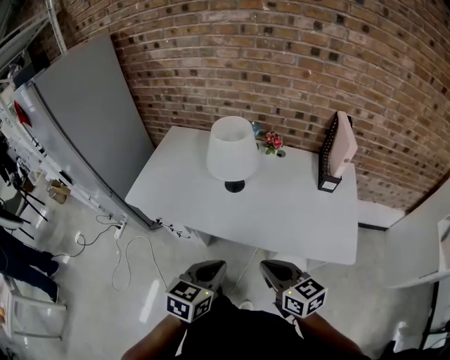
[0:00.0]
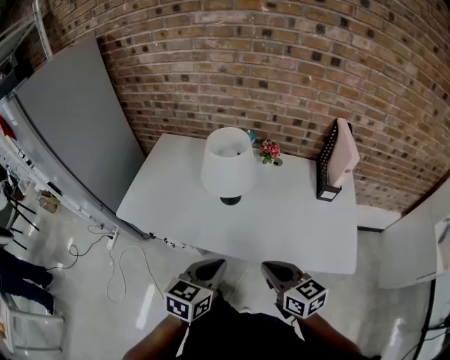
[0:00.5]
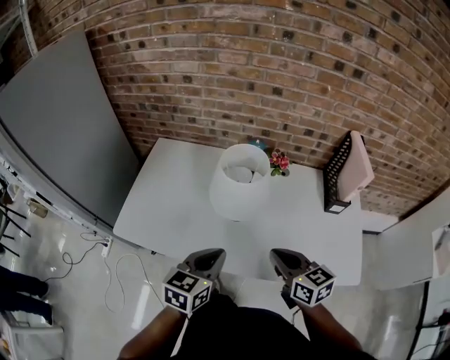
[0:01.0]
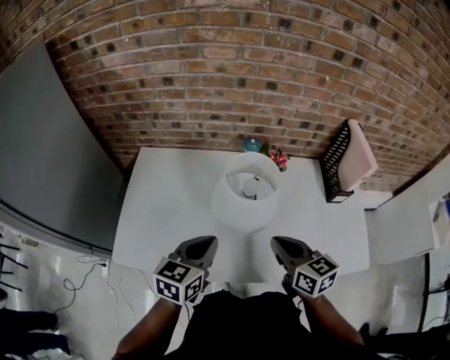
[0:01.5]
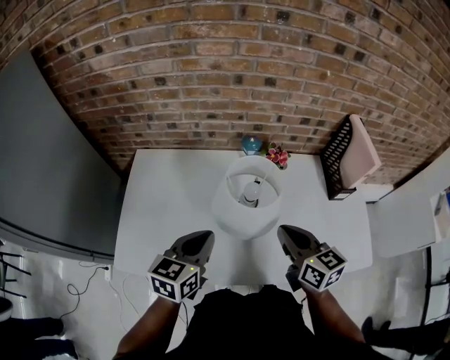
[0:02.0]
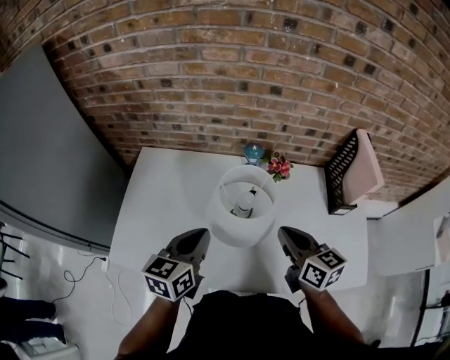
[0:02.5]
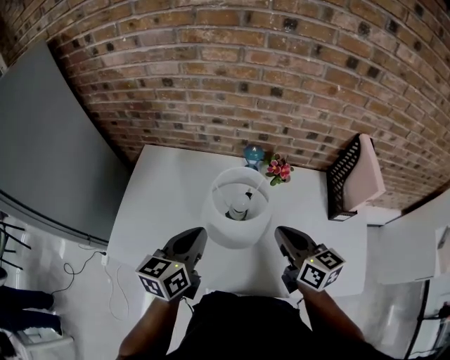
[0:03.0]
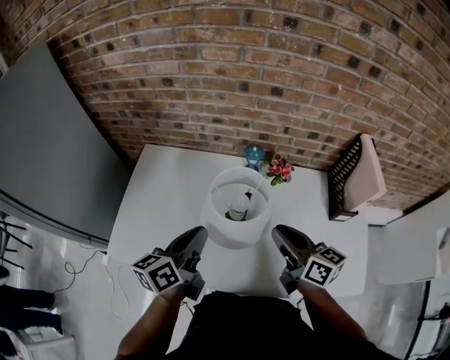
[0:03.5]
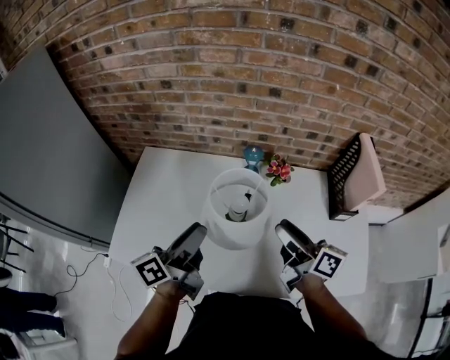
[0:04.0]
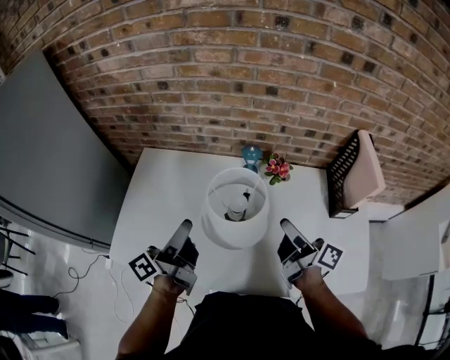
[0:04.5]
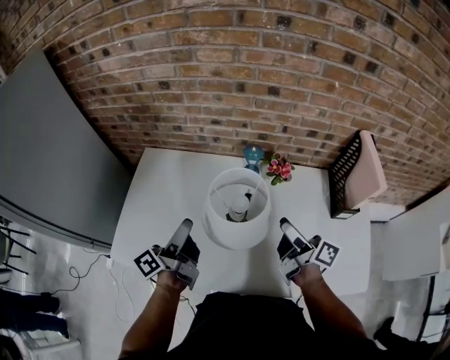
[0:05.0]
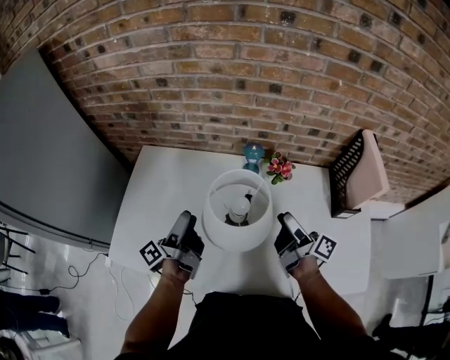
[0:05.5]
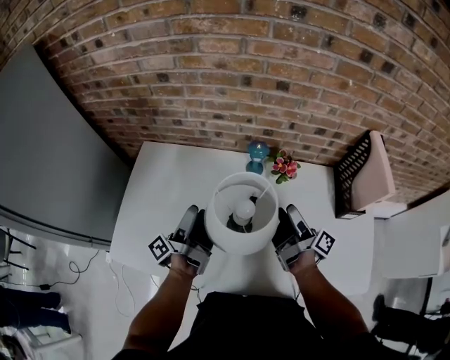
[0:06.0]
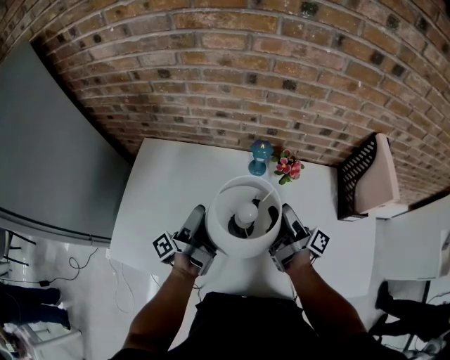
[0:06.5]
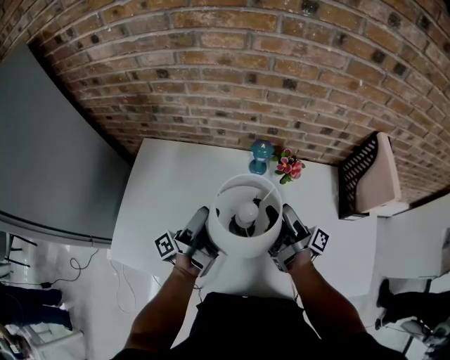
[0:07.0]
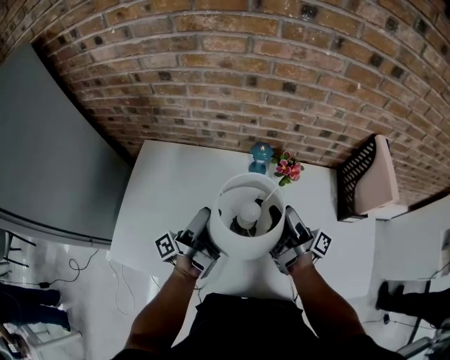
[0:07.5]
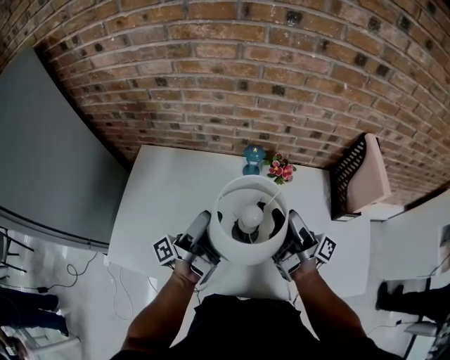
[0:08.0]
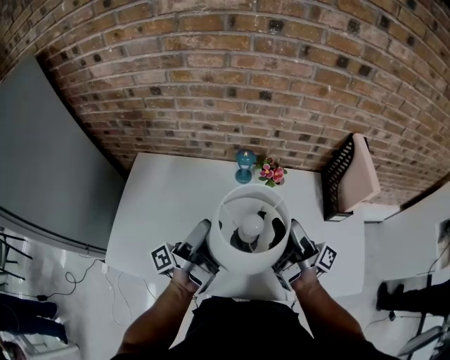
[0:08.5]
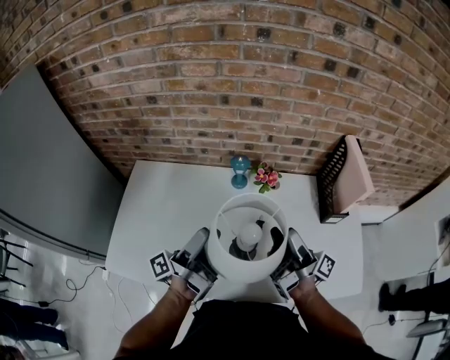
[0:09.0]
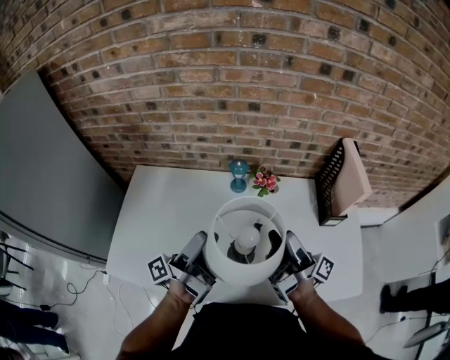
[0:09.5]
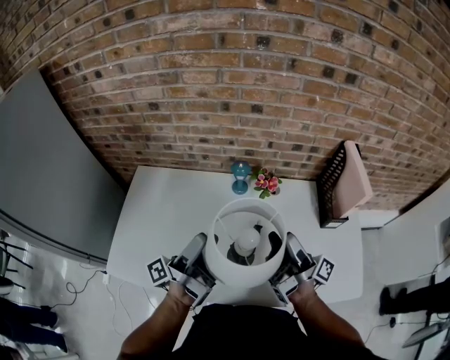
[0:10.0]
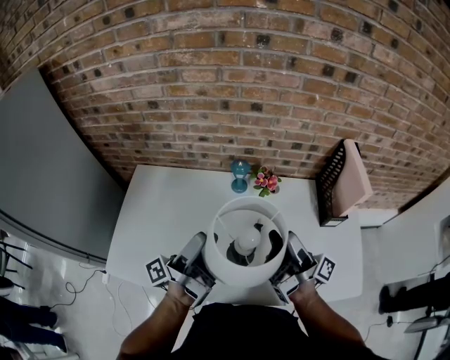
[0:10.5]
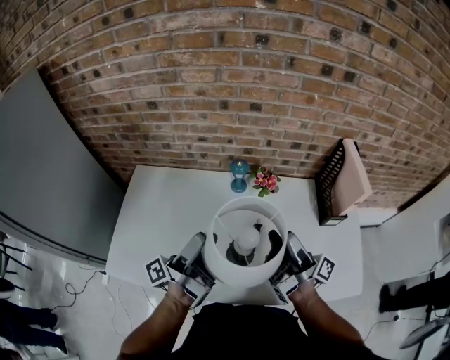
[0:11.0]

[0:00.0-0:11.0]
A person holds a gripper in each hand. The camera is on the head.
0:00.0 to 0:02.0: The left gripper moves forward and to the left, roughly 35 cm. Meanwhile the right gripper moves forward, roughly 30 cm, and rotates roughly 20 degrees.
0:02.0 to 0:03.5: The left gripper turns by about 30 degrees. Meanwhile the right gripper changes place by about 5 cm.
0:03.5 to 0:05.5: The grippers both shift downward and forward by about 10 cm. The right gripper swivels roughly 40 degrees, and opens up. Meanwhile the left gripper twists about 40 degrees counterclockwise, seen from behind, and opens its fingers.
0:05.5 to 0:07.5: The right gripper turns by about 20 degrees; the left gripper shifts some 5 cm to the right.
0:07.5 to 0:09.0: The two grippers go some 10 cm backward, upward and to the right.
0:09.0 to 0:11.0: The grippers move only a little.

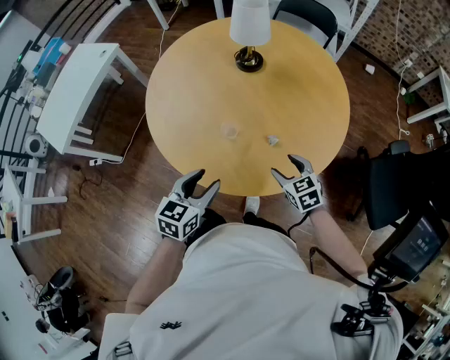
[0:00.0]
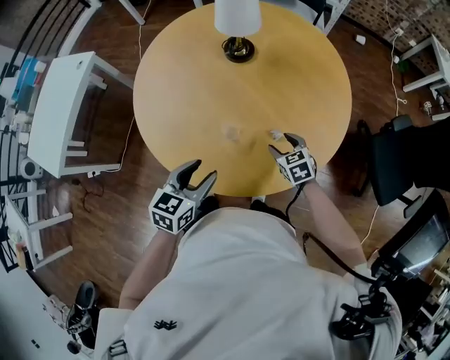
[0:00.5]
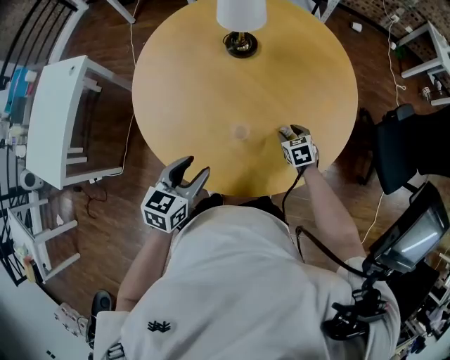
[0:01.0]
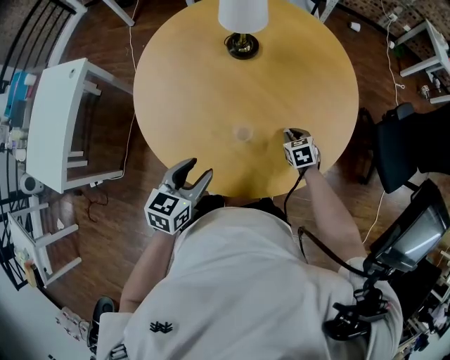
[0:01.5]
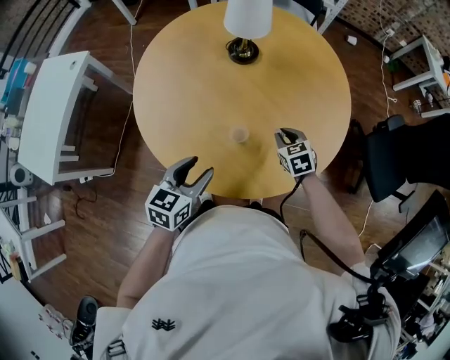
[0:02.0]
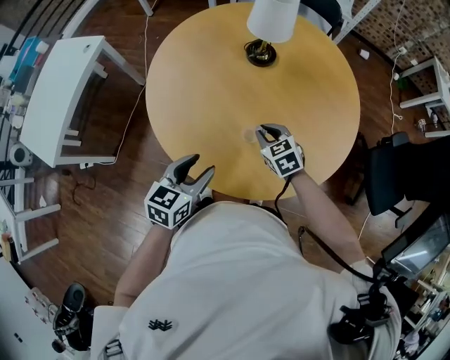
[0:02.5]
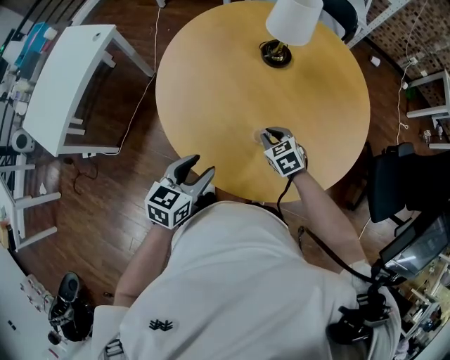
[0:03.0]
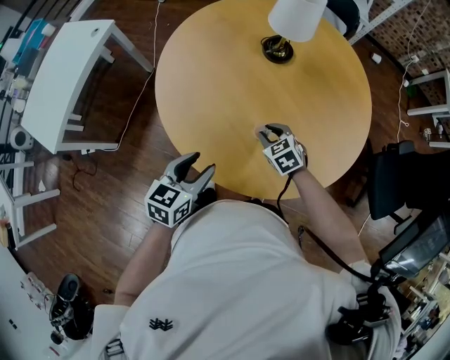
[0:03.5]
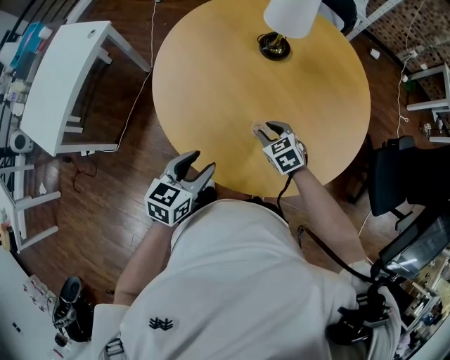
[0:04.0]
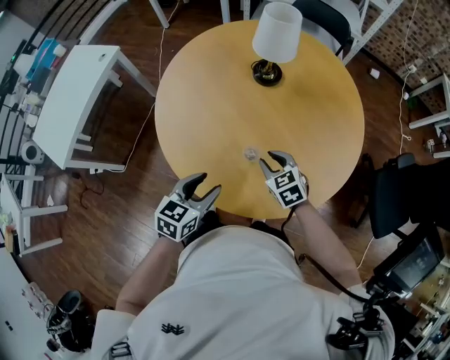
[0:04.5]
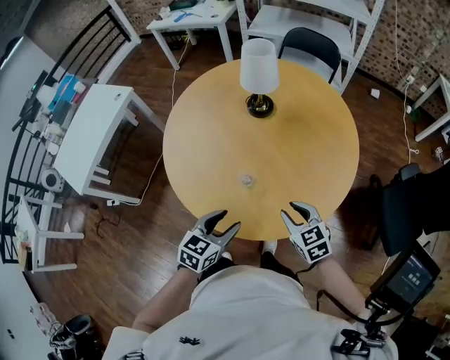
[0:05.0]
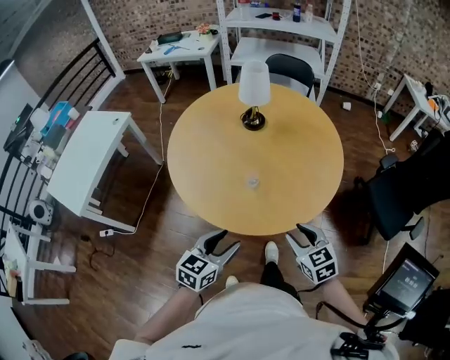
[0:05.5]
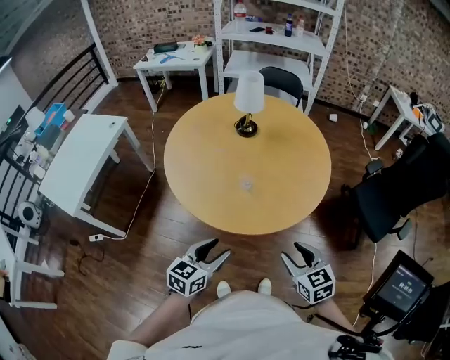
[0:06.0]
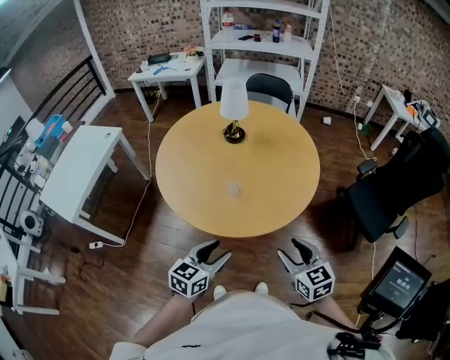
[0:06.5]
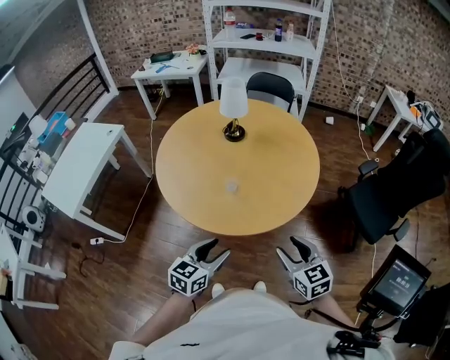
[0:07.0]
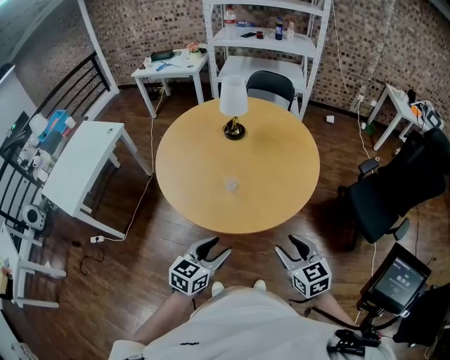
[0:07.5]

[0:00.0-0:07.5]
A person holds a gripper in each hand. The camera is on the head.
0:00.0 to 0:02.0: The right gripper shifts some 15 cm forward and to the left, travels downward and back again, roughly 15 cm each way, and closes, while the left gripper is displaced to the left and forward by roughly 15 cm.
0:02.0 to 0:04.0: The left gripper goes some 5 cm to the left; the right gripper is displaced to the left by approximately 15 cm.
0:04.0 to 0:05.5: The left gripper goes about 20 cm backward and to the right. Meanwhile the right gripper is displaced backward, upward and to the right by about 35 cm, and changes its angle by approximately 20 degrees.
0:05.5 to 0:07.5: The left gripper moves to the right and backward, about 10 cm. Meanwhile the right gripper travels backward, upward and to the right by roughly 10 cm.

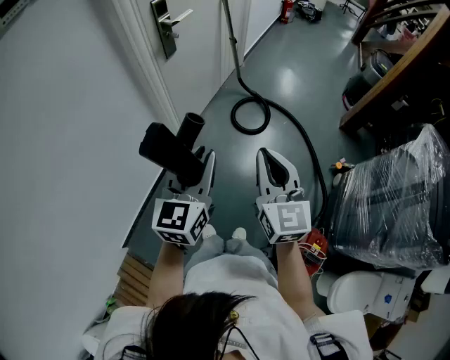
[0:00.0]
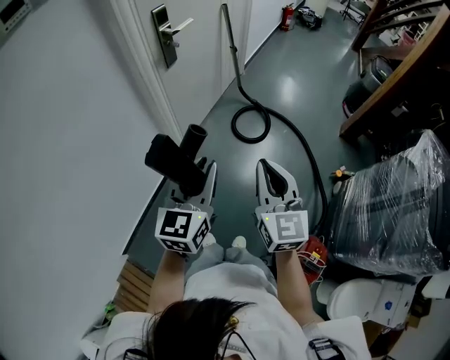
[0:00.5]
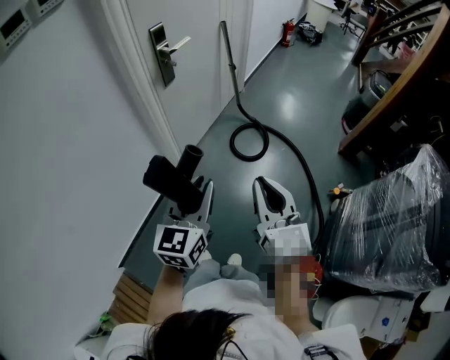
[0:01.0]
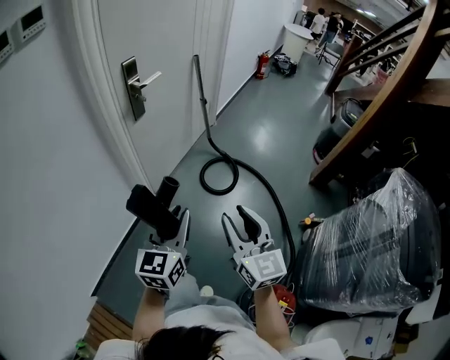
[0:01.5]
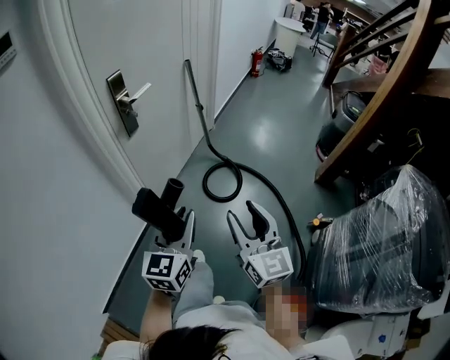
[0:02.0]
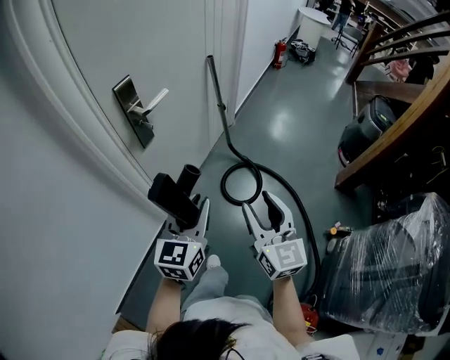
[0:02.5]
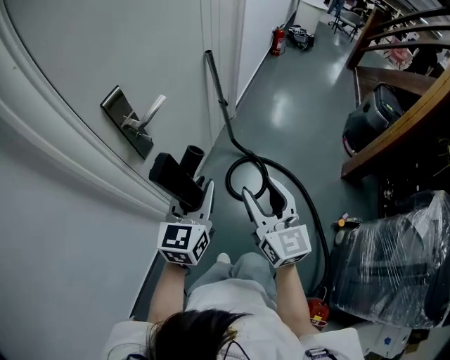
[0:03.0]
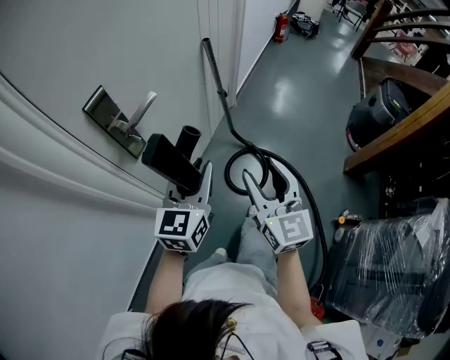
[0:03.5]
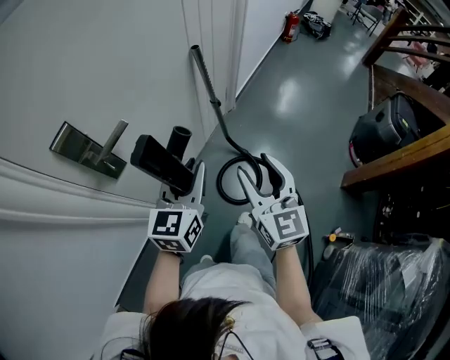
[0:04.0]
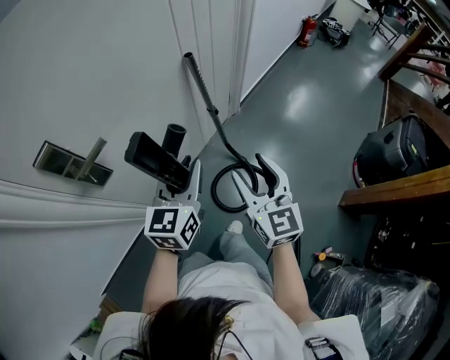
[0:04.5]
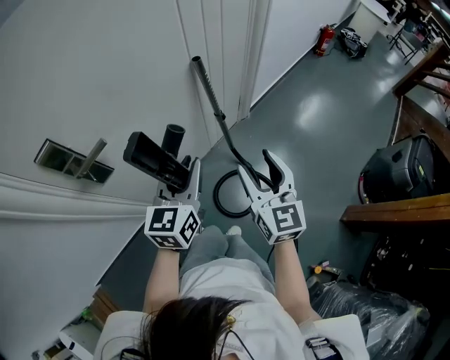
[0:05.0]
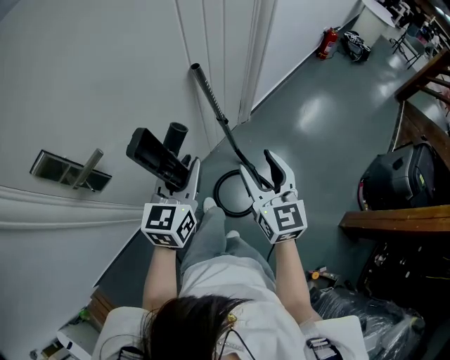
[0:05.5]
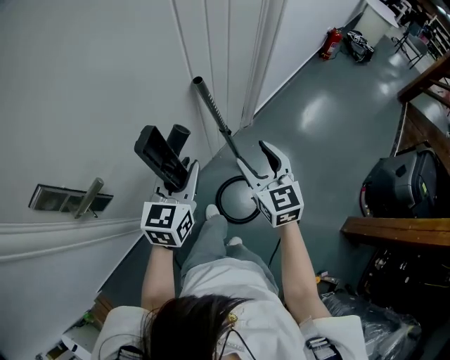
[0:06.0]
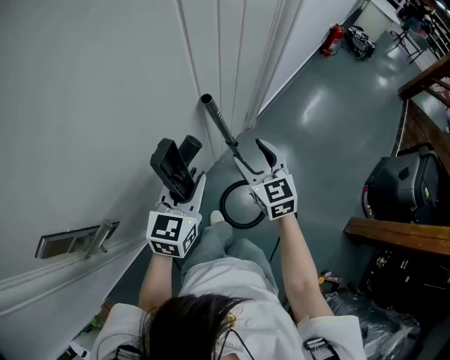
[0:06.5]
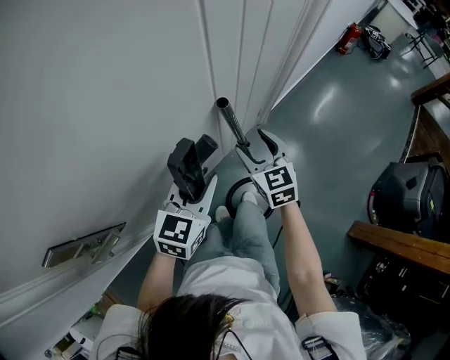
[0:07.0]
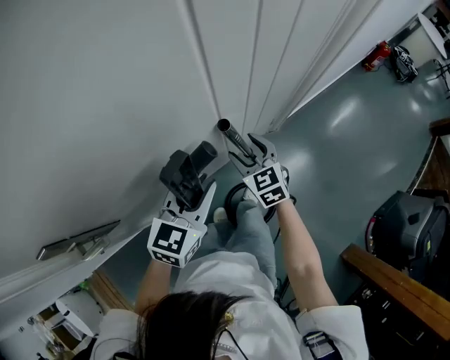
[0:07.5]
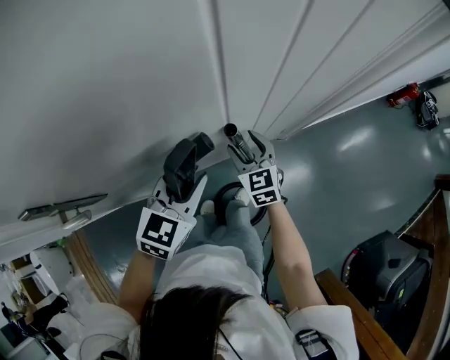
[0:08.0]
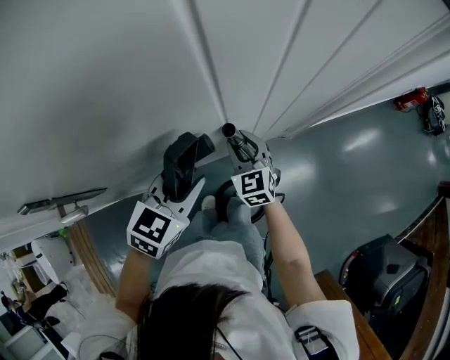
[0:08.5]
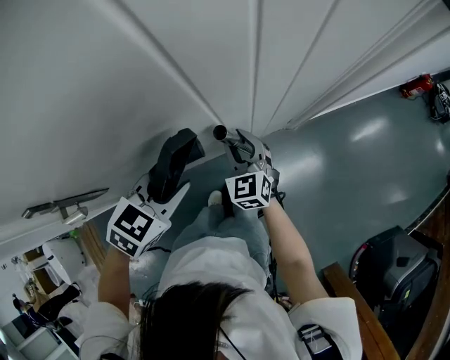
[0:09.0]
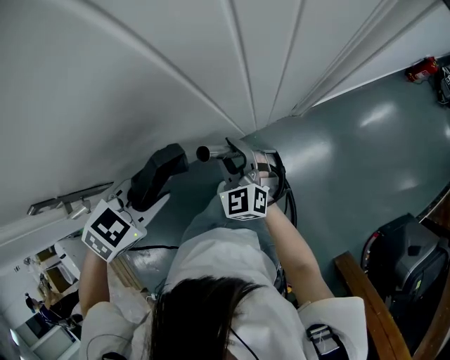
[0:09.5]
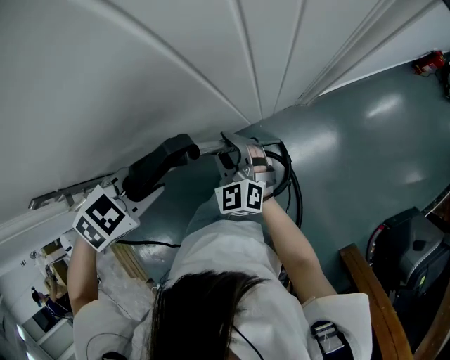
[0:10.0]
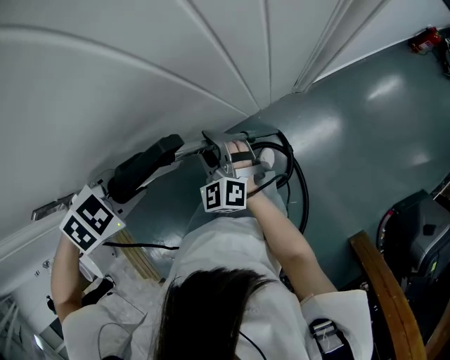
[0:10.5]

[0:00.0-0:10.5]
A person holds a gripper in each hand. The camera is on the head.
0:00.0 to 0:02.0: The two grippers go about 15 cm forward and to the right. The right gripper opens its fingers.
0:02.0 to 0:04.0: The two grippers travel together, forward, about 40 cm.
0:04.0 to 0:06.5: Both grippers move forward, roughly 30 cm. The right gripper rotates approximately 20 degrees.
0:06.5 to 0:08.5: The right gripper is displaced forward, downward and to the left by approximately 20 cm, changes its angle by roughly 30 degrees, and closes its fingers. The left gripper goes roughly 5 cm forward.
0:08.5 to 0:10.5: The right gripper moves some 10 cm; the left gripper ends up some 10 cm from where it was, and angles its fingers downward, by some 40 degrees.
